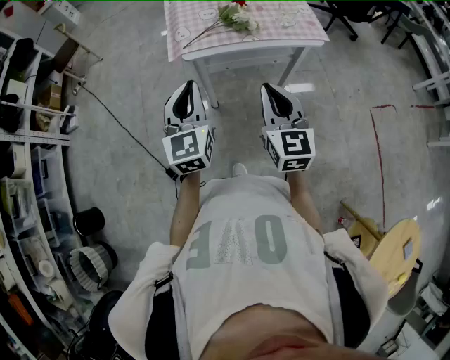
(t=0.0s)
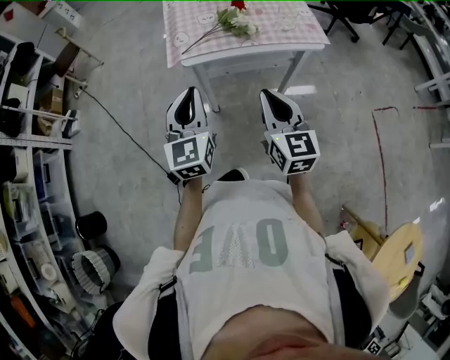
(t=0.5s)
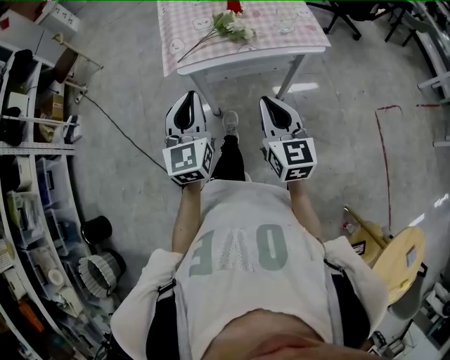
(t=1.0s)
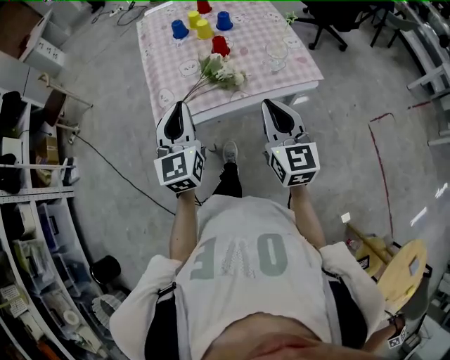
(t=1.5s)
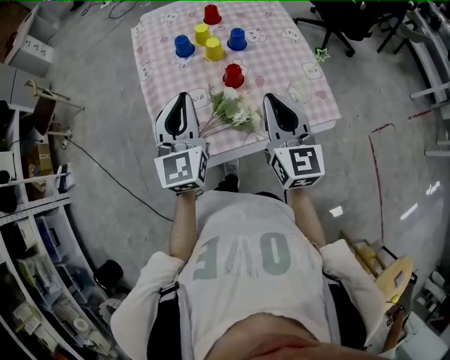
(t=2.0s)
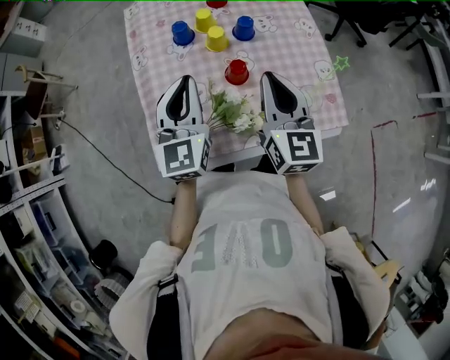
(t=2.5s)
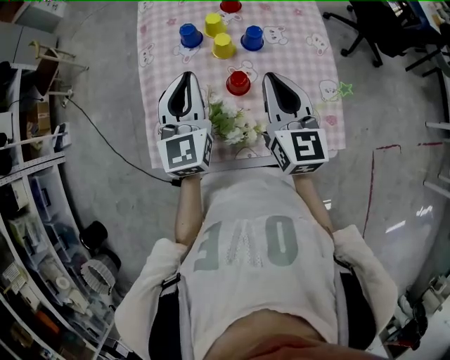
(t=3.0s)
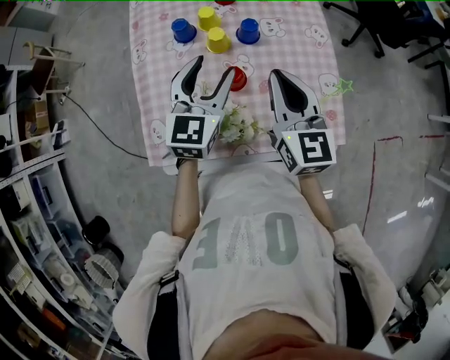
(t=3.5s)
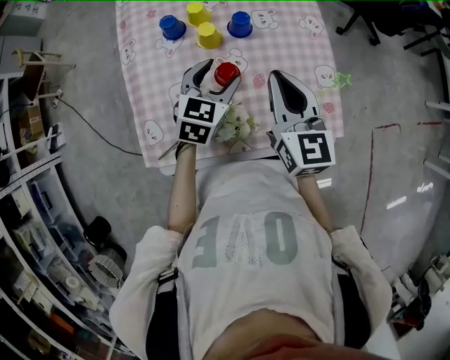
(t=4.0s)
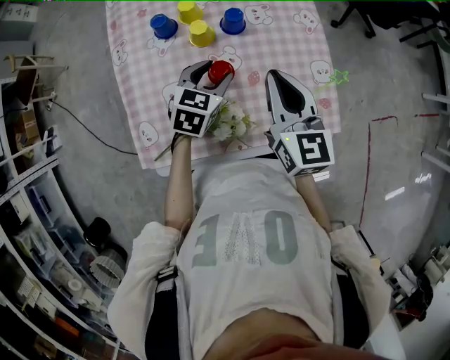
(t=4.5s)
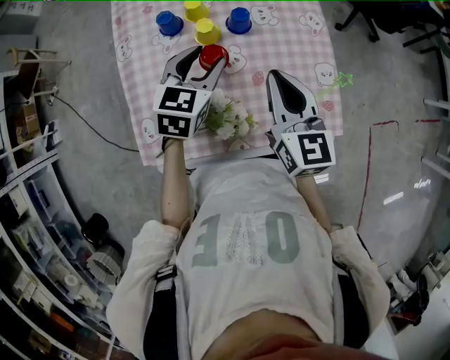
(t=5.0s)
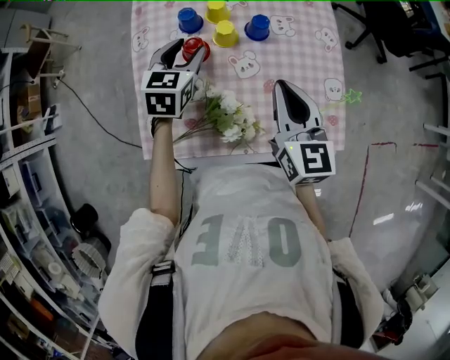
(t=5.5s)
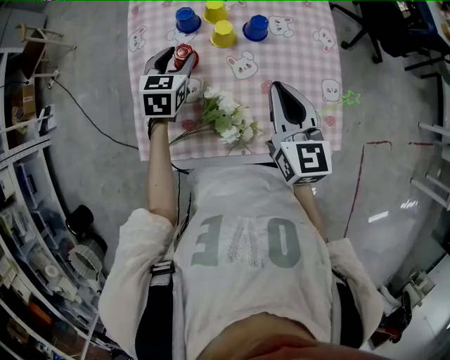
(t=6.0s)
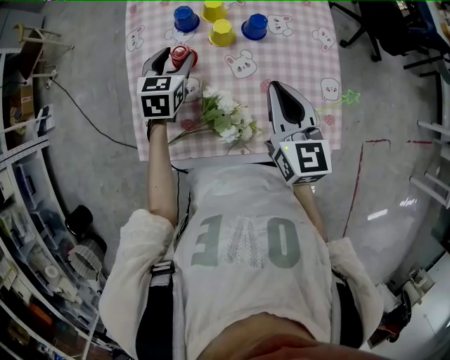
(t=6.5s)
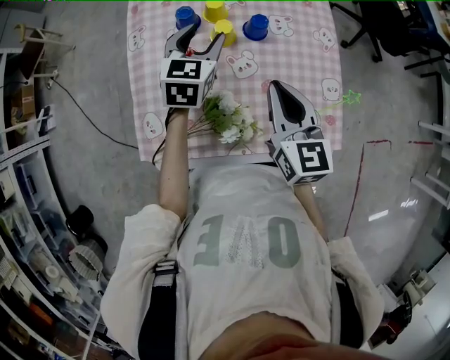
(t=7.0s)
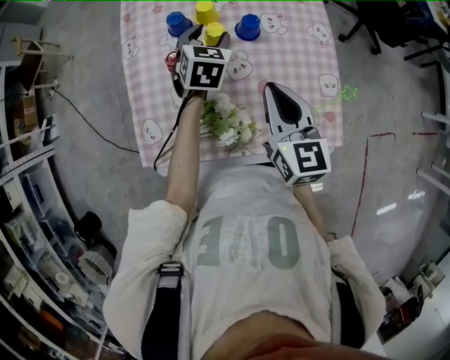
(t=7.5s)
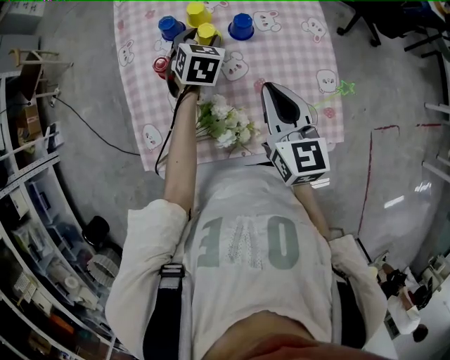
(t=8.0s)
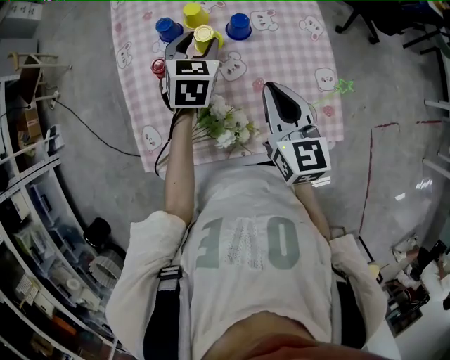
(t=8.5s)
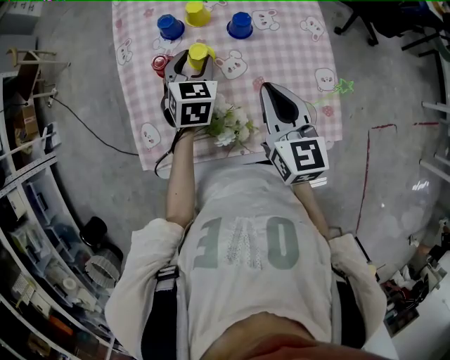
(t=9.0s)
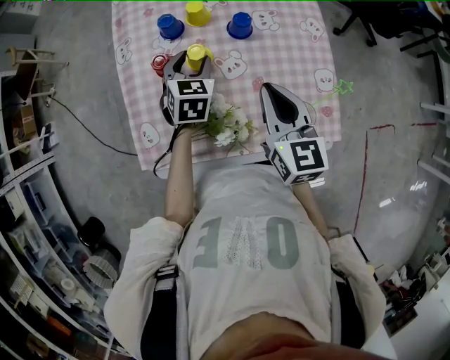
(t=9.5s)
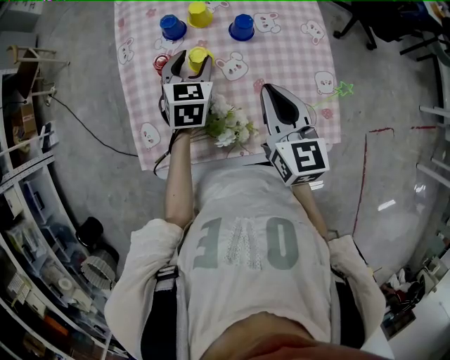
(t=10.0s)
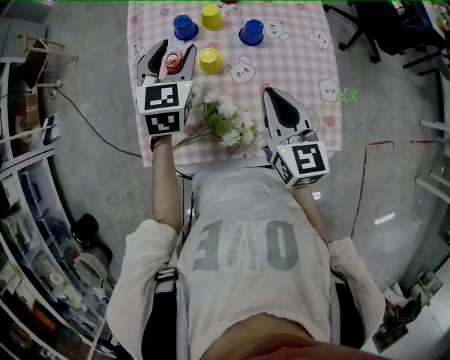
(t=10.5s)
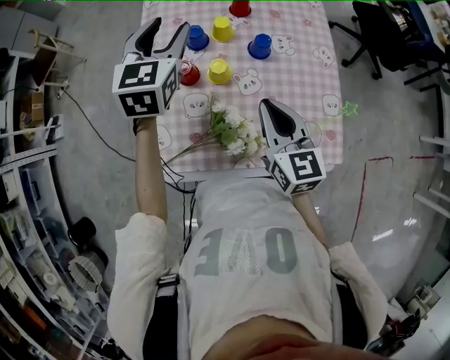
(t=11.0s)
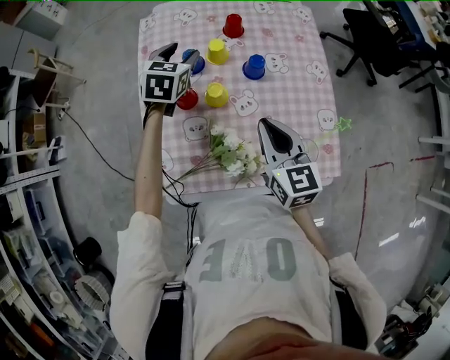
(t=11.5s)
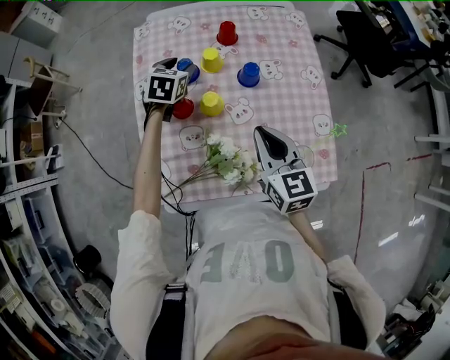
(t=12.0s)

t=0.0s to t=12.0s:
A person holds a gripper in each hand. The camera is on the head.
t=0.0s to t=2.0s: Both grippers are carried forward, about 40 cm.
t=2.0s to t=4.0s: The right gripper moves forward, some 15 cm; the left gripper travels downward, to the right and forward by roughly 25 cm, points its fingers roughly 30 degrees further downward, and opens.
t=4.0s to t=6.0s: The left gripper moves to the left, approximately 15 cm.
t=6.0s to t=8.0s: The left gripper moves to the right and forward, roughly 10 cm.
t=8.0s to t=10.0s: The left gripper shifts some 5 cm backward.
t=10.0s to t=12.0s: The left gripper shifts about 15 cm forward and to the left, and moves approximately 15 cm upward and comes back.

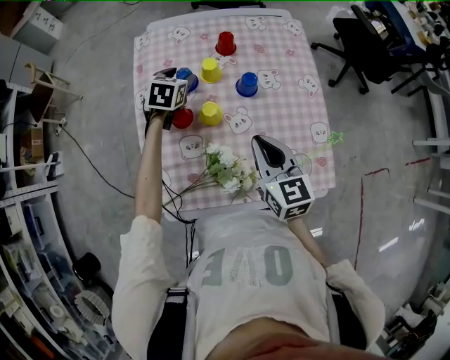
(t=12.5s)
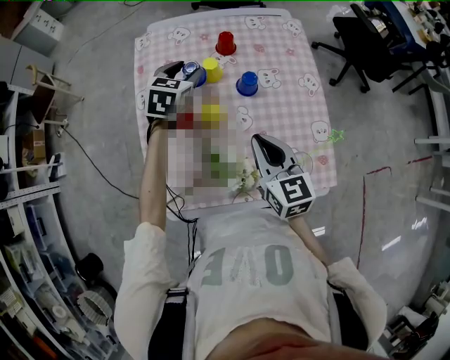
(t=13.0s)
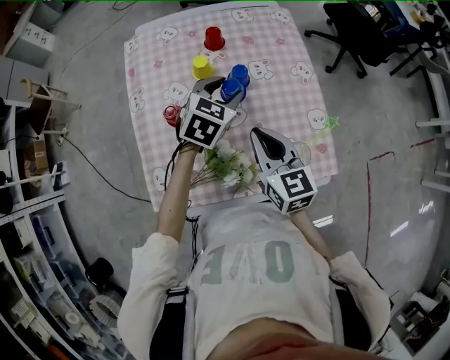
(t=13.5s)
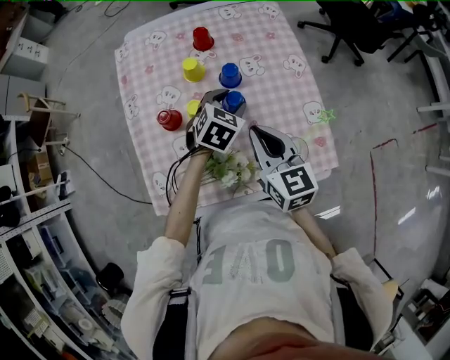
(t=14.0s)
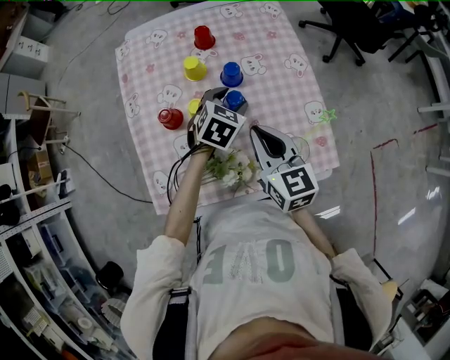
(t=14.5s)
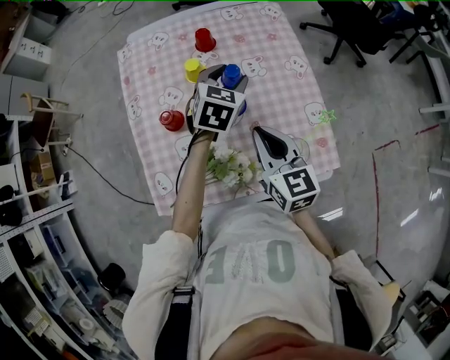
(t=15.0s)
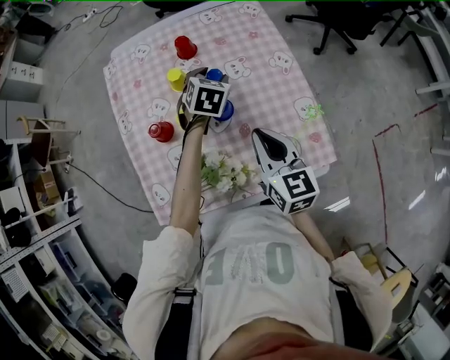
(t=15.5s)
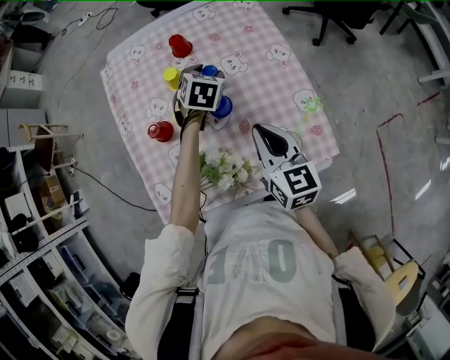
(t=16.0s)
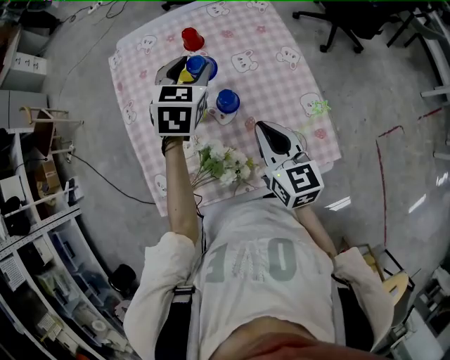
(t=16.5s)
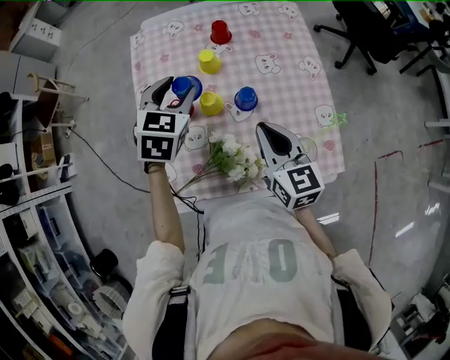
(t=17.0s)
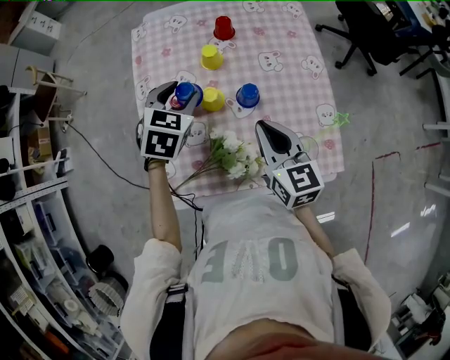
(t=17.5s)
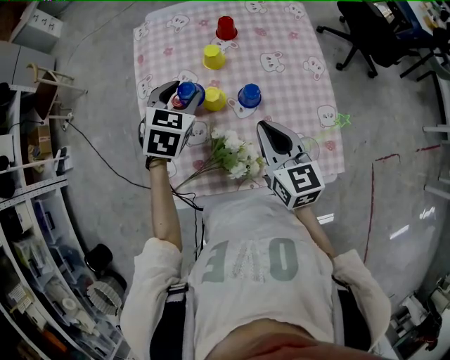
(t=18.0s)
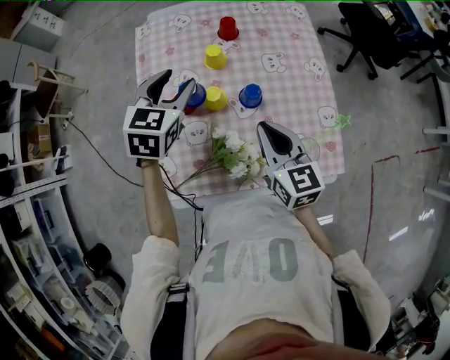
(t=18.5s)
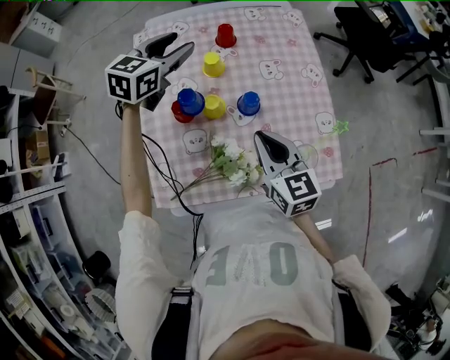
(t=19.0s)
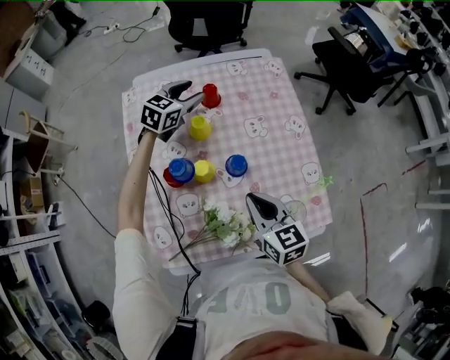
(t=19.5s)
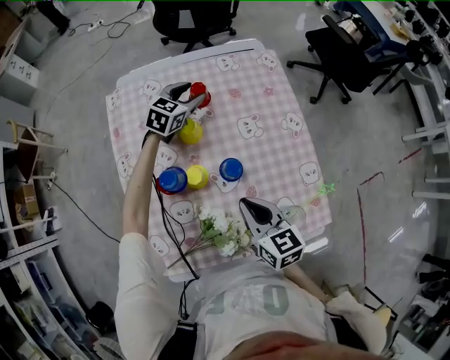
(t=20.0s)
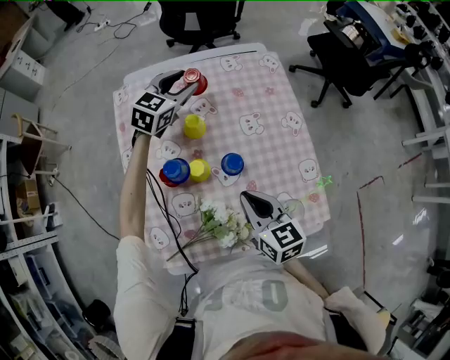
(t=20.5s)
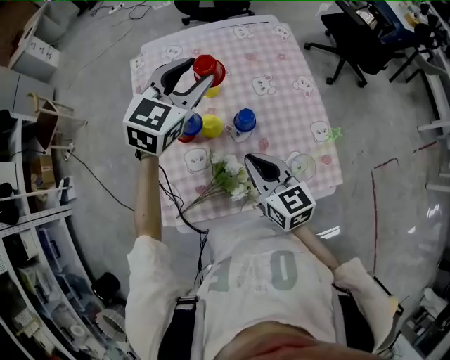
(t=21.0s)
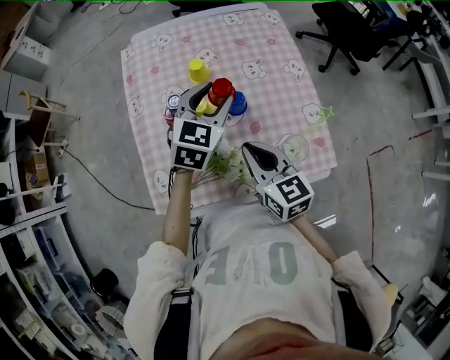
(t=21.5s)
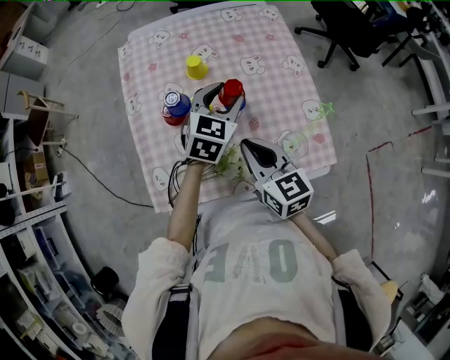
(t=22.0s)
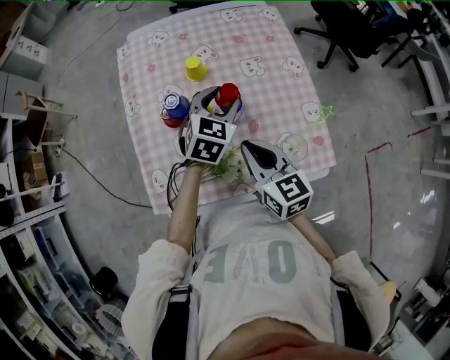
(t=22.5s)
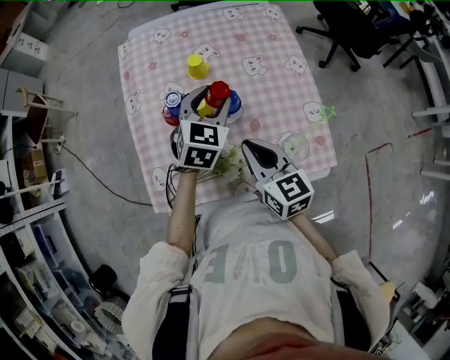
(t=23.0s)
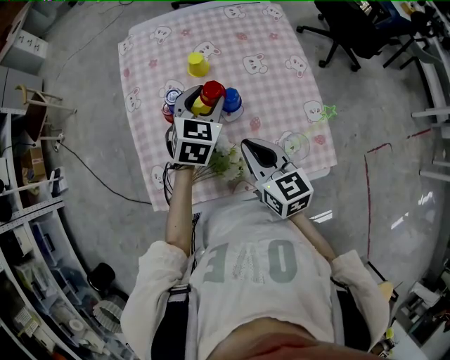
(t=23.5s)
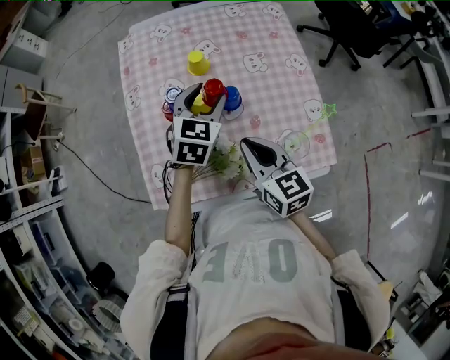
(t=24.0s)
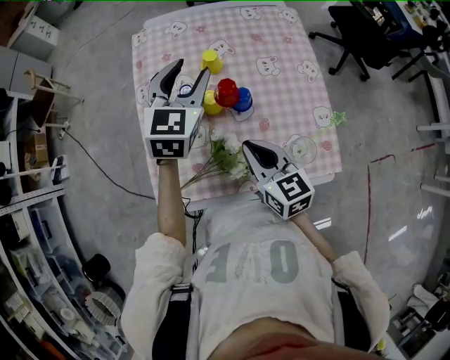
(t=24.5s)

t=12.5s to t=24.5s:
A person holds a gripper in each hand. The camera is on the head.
t=12.5s to t=14.5s: The left gripper goes roughly 25 cm to the right and backward, and swivels about 20 degrees.
t=14.5s to t=16.5s: The left gripper goes up and down, some 15 cm each way, reversing 2 times.
t=16.5s to t=18.5s: The right gripper heads to the left, covering some 5 cm. Meanwhile the left gripper heads to the left and backward, covering approximately 15 cm.
t=18.5s to t=20.5s: The left gripper moves forward, about 25 cm, and changes its angle by approximately 20 degrees.
t=20.5s to t=22.5s: The right gripper heads backward, covering some 5 cm. Meanwhile the left gripper shifts some 25 cm backward.
t=22.5s to t=24.5s: The left gripper shifts roughly 15 cm upward and to the left.

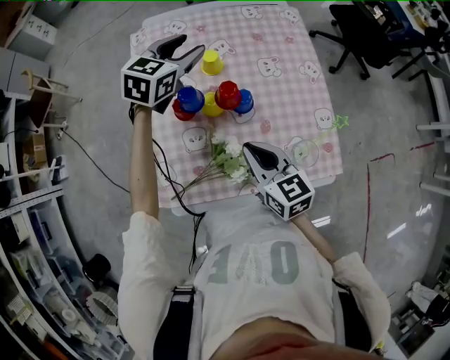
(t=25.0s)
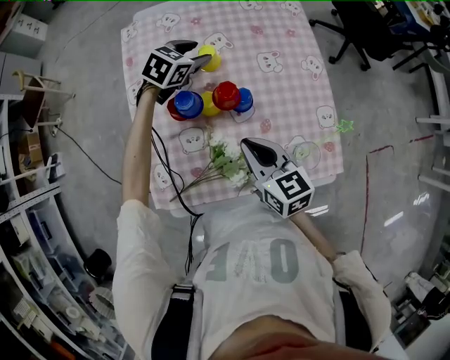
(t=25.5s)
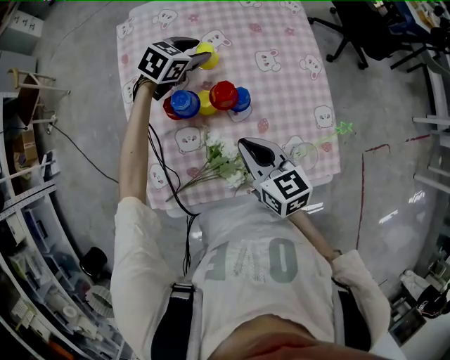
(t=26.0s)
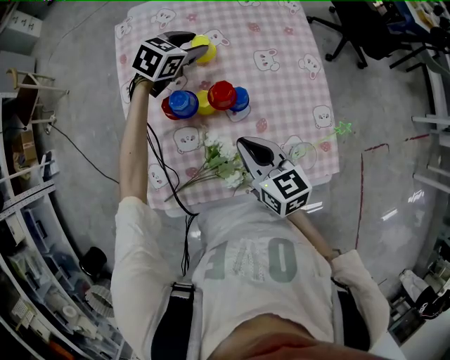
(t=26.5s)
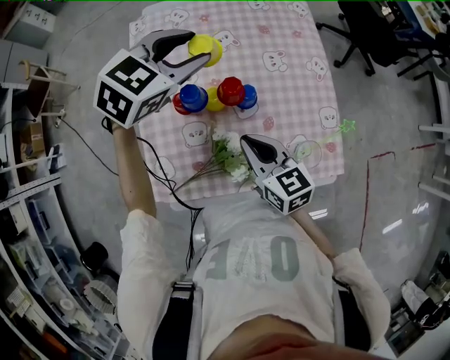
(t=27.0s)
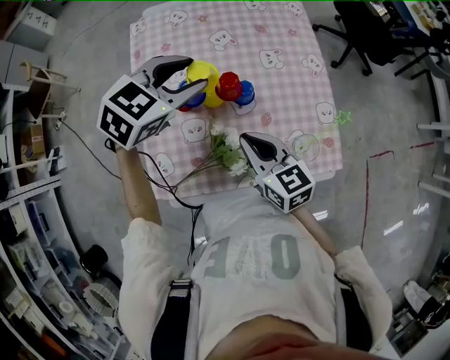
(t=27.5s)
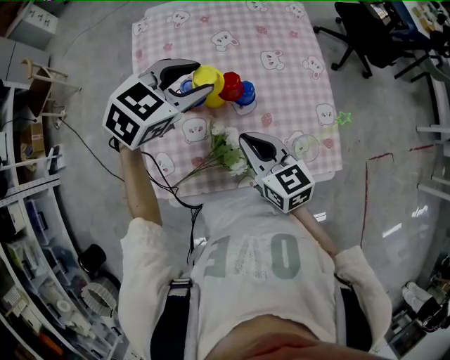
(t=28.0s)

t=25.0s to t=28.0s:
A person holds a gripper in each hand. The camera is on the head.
t=25.0s to t=26.5s: The left gripper shifts roughly 10 cm downward.
t=26.5s to t=28.0s: The left gripper travels backward and upward by about 20 cm.
